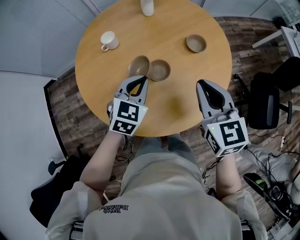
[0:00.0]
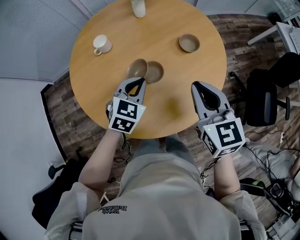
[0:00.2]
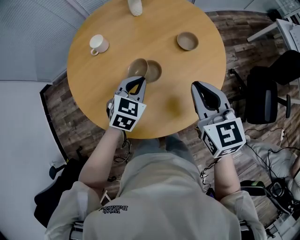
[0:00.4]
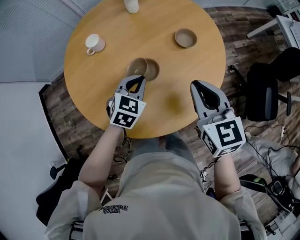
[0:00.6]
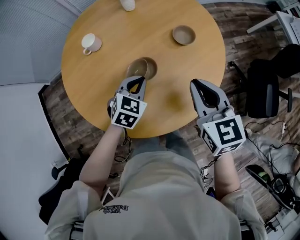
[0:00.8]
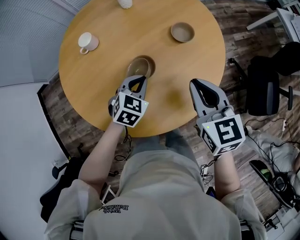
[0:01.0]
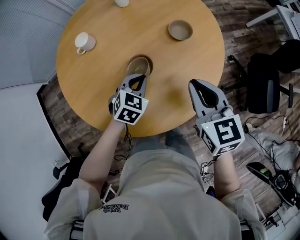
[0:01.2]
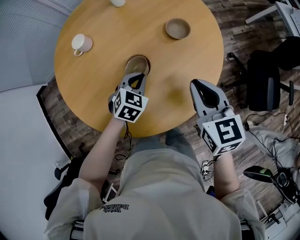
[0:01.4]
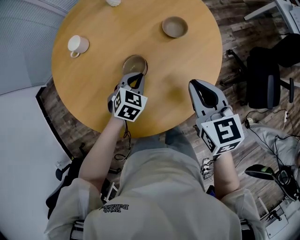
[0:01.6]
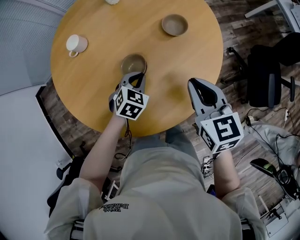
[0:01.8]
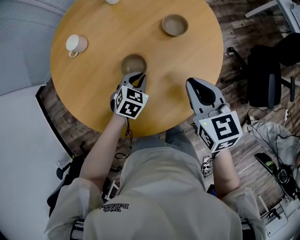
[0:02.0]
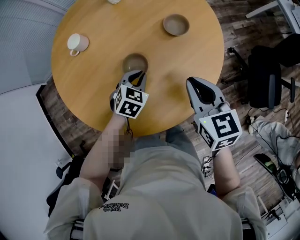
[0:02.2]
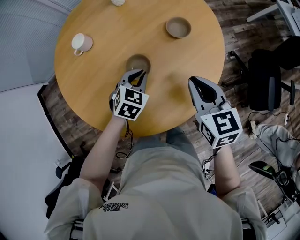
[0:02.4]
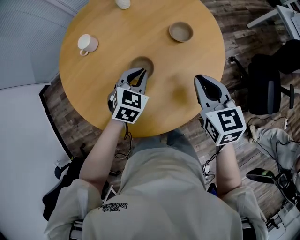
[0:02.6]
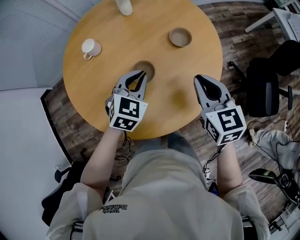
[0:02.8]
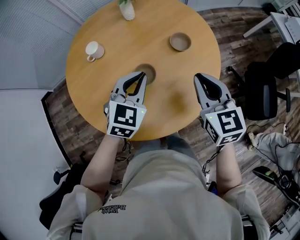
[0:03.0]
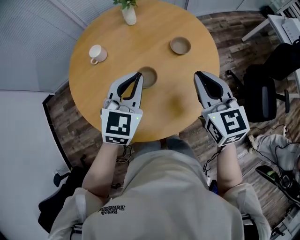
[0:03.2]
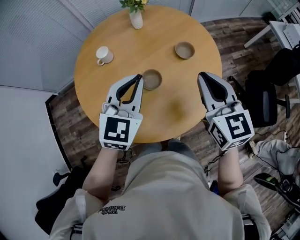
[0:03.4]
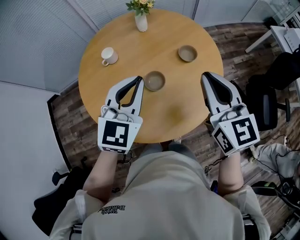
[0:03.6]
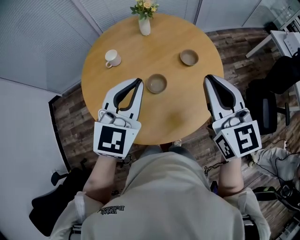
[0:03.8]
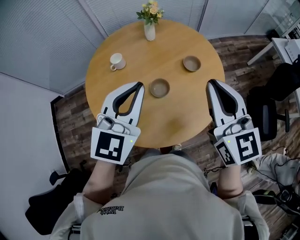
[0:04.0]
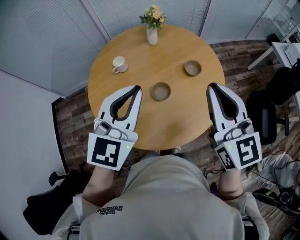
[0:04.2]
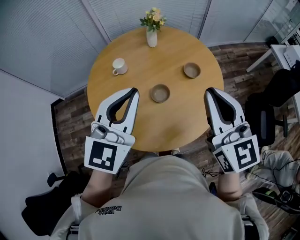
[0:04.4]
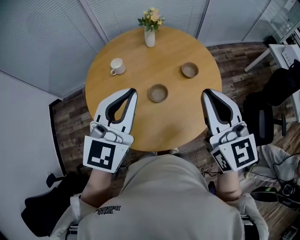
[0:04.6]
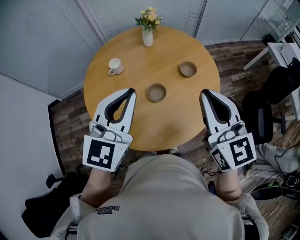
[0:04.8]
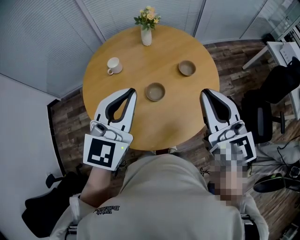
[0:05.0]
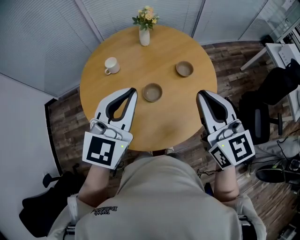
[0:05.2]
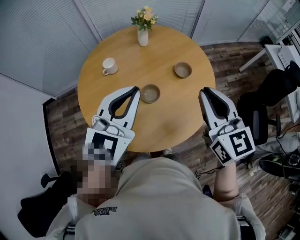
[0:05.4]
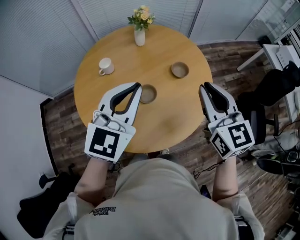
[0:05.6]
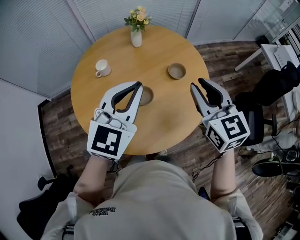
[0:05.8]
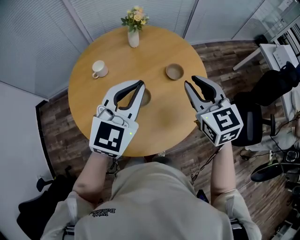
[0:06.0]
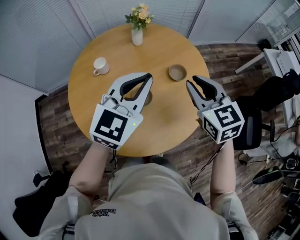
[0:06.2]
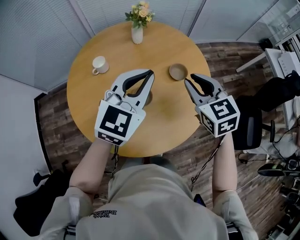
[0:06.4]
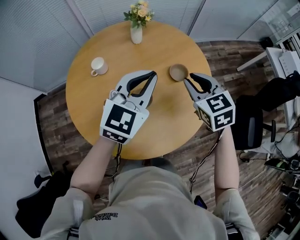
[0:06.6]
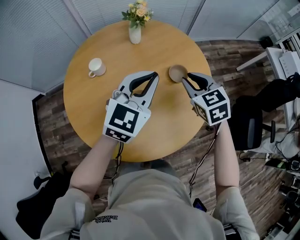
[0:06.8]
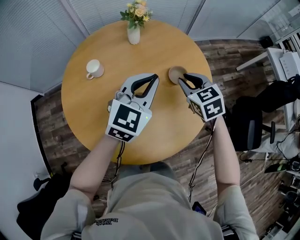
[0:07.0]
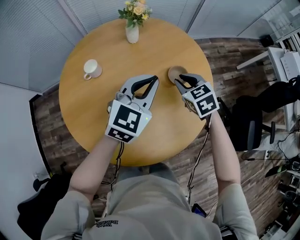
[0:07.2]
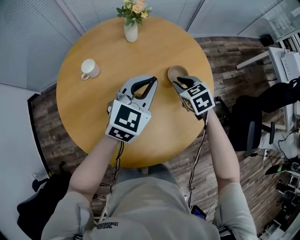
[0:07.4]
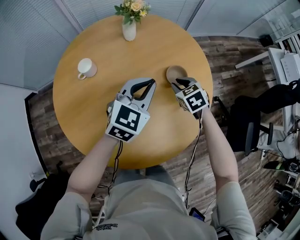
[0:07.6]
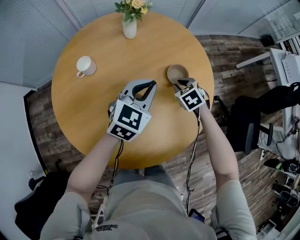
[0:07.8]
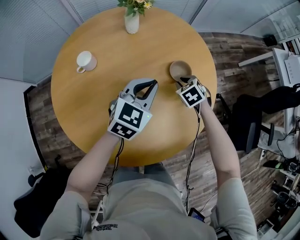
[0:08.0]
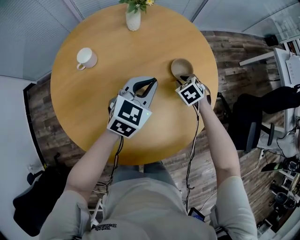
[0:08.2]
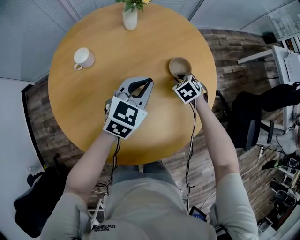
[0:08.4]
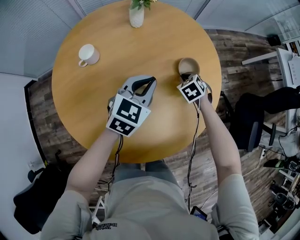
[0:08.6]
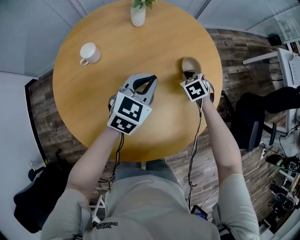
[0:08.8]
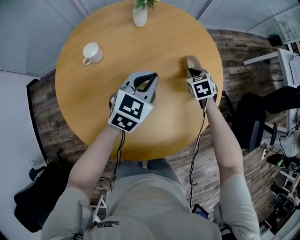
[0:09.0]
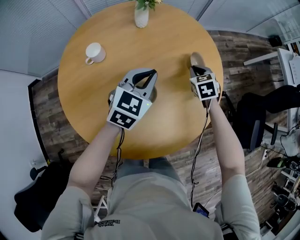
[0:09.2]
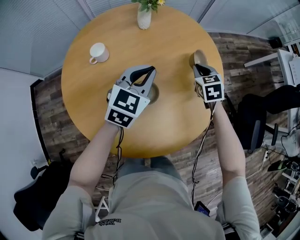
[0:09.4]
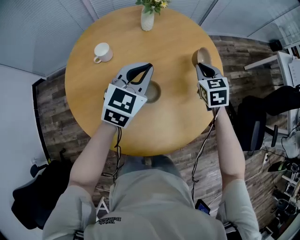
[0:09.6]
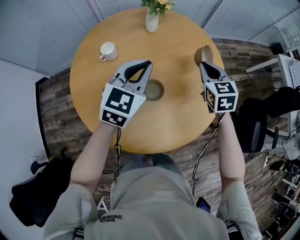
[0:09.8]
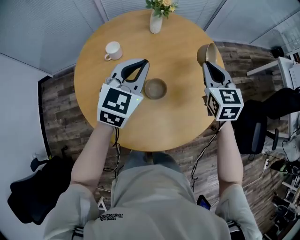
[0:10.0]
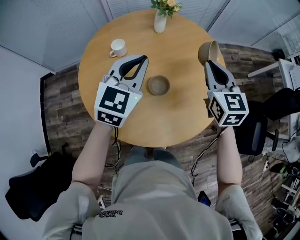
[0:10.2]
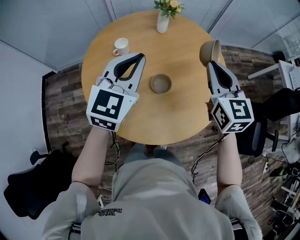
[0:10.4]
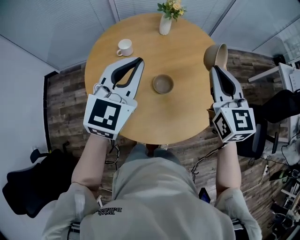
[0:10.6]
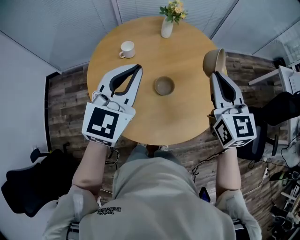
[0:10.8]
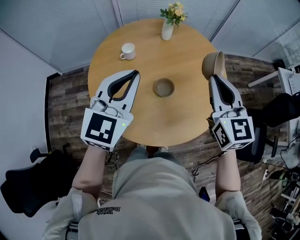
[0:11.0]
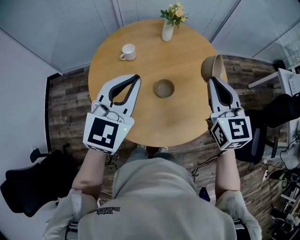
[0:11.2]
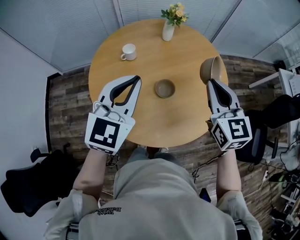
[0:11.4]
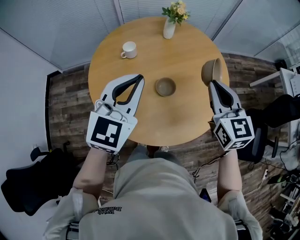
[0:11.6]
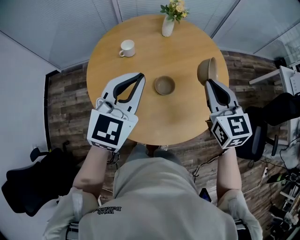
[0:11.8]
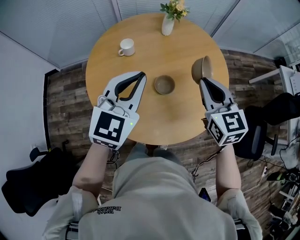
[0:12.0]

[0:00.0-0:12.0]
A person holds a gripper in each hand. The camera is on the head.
0.0 to 1.6 s: The left gripper travels downward by roughly 15 cm. Meanwhile the right gripper shifts about 10 cm downward and to the right.
1.6 to 3.0 s: The right gripper heads upward, covering some 5 cm; the left gripper shifts approximately 20 cm upward, and turns by roughly 20 degrees.
3.0 to 4.4 s: The left gripper shifts about 25 cm upward and backward, and swivels roughly 30 degrees. The right gripper moves upward, some 20 cm, and changes its angle by roughly 20 degrees.
4.4 to 6.0 s: The left gripper goes some 10 cm to the right and forward. The right gripper goes some 15 cm forward and downward.
6.0 to 7.6 s: The grippers both shift downward and forward by about 25 cm. The right gripper angles its fingers downward, by roughly 30 degrees.
7.6 to 9.0 s: The left gripper moves some 5 cm; the right gripper heads downward, covering approximately 5 cm.
9.0 to 10.4 s: The right gripper travels upward and backward by approximately 35 cm, and points its fingers roughly 40 degrees further upward. The left gripper is displaced upward, to the left and backward by approximately 25 cm, and swivels roughly 20 degrees.
10.4 to 12.0 s: The left gripper moves backward, approximately 5 cm, while the right gripper moves approximately 5 cm.

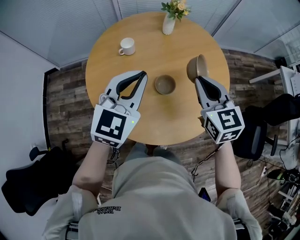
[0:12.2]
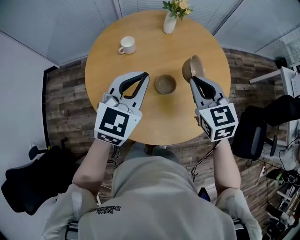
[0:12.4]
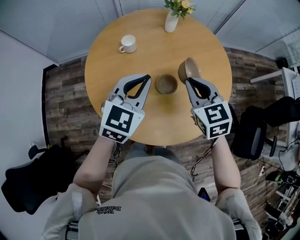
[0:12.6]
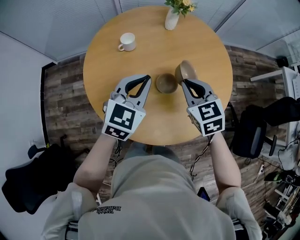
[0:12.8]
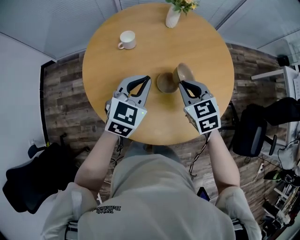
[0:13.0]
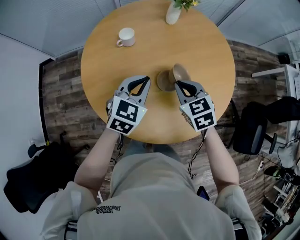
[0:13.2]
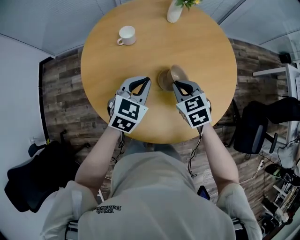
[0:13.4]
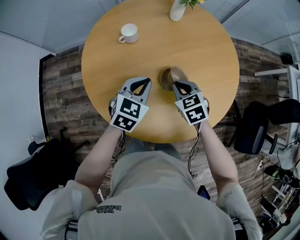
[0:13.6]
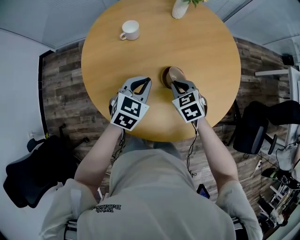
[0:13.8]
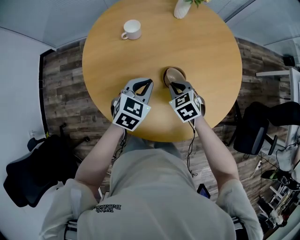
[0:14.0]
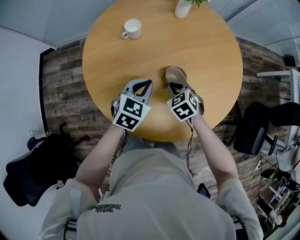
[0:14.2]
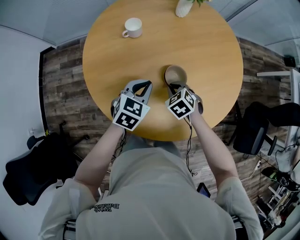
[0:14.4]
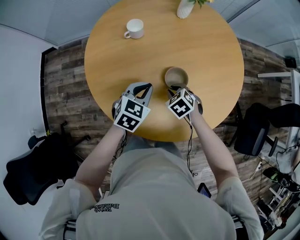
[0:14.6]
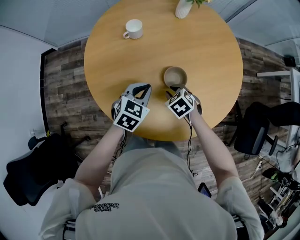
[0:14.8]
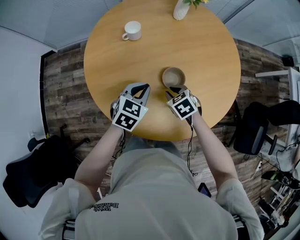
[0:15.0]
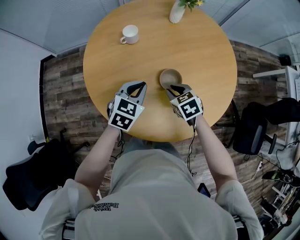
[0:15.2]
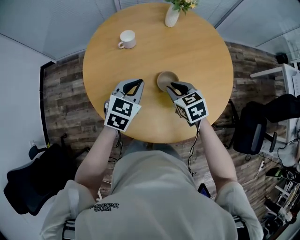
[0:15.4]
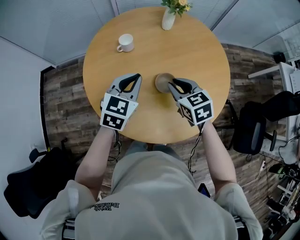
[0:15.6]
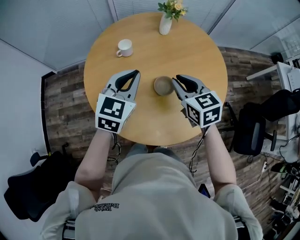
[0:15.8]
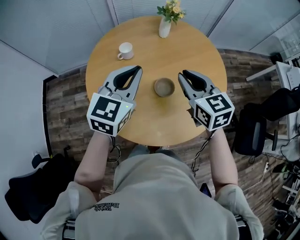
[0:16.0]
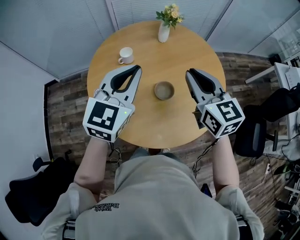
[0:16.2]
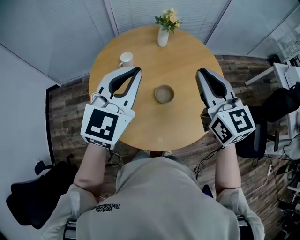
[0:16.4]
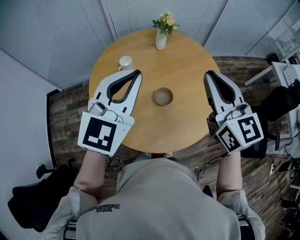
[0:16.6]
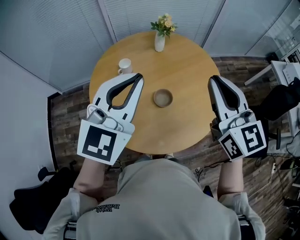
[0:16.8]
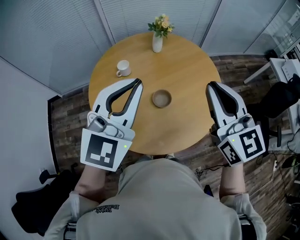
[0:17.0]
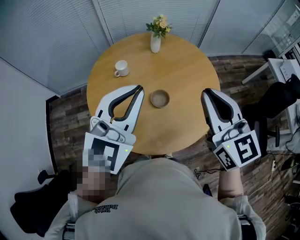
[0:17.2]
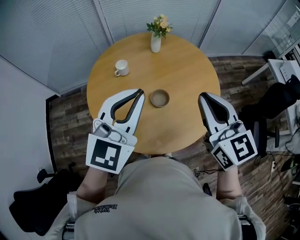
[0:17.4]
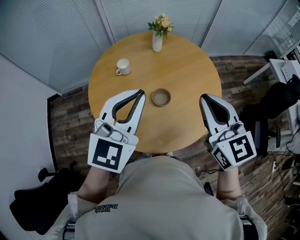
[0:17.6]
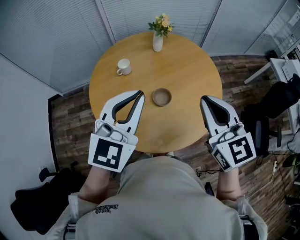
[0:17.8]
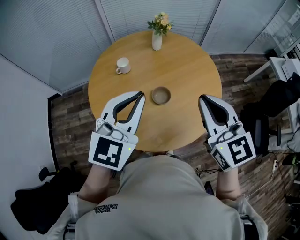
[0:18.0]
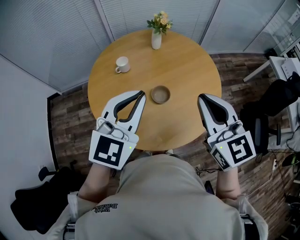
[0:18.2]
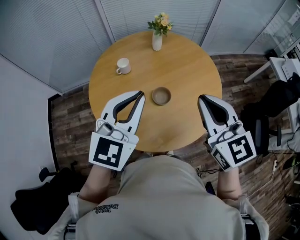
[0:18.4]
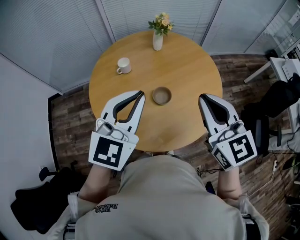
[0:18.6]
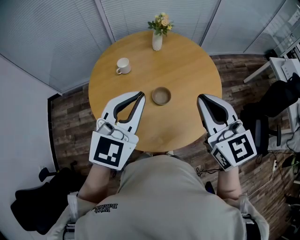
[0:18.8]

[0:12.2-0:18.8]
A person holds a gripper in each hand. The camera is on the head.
12.2 to 13.8 s: The grippers both shift downward by some 25 cm. The right gripper angles its fingers downward, by roughly 30 degrees. Meanwhile the left gripper rotates roughly 30 degrees.
13.8 to 15.4 s: The right gripper shifts approximately 5 cm upward.
15.4 to 17.2 s: The two grippers go about 30 cm upward. The right gripper angles its fingers upward, by some 40 degrees; the left gripper changes its angle by about 40 degrees.
17.2 to 18.8 s: The grippers make only small movements.

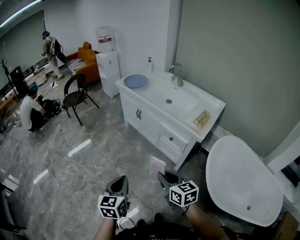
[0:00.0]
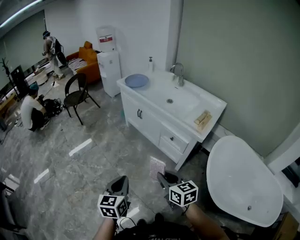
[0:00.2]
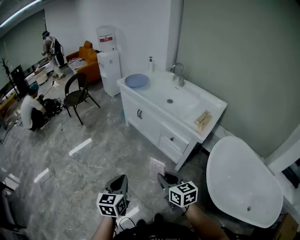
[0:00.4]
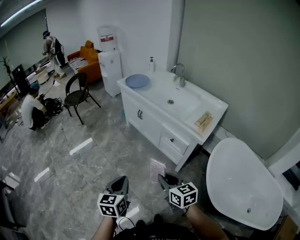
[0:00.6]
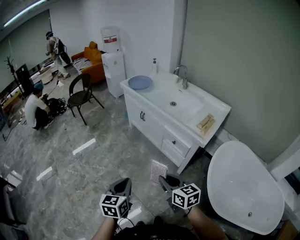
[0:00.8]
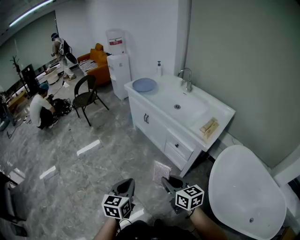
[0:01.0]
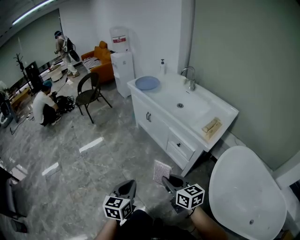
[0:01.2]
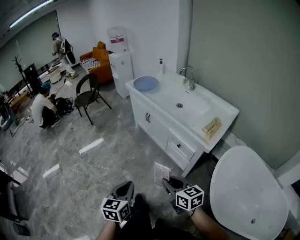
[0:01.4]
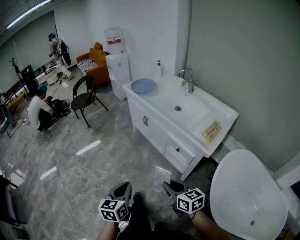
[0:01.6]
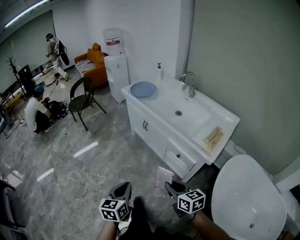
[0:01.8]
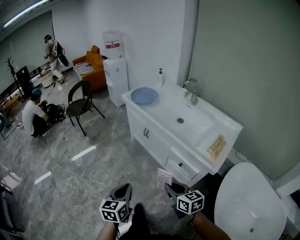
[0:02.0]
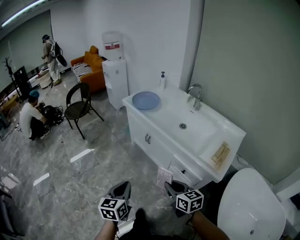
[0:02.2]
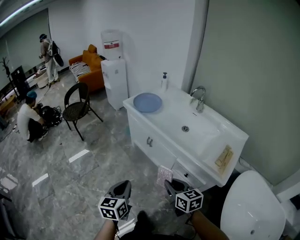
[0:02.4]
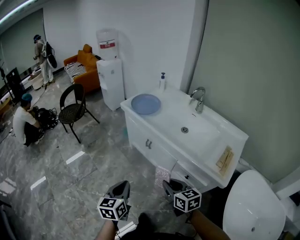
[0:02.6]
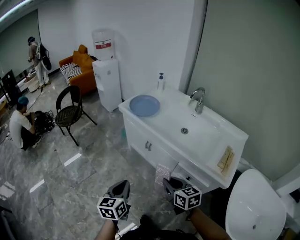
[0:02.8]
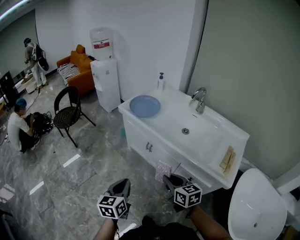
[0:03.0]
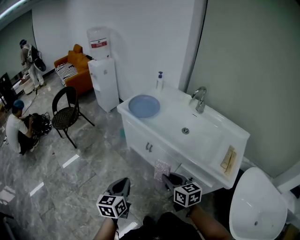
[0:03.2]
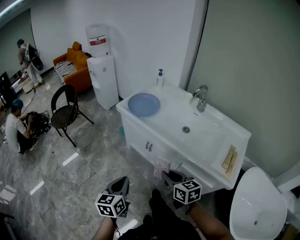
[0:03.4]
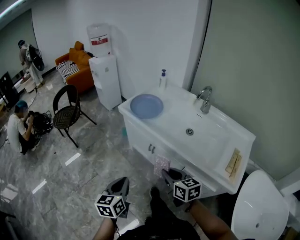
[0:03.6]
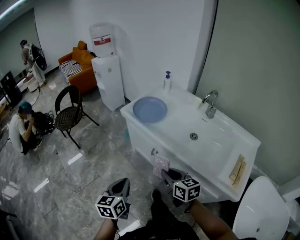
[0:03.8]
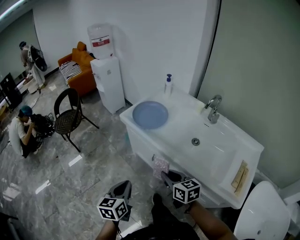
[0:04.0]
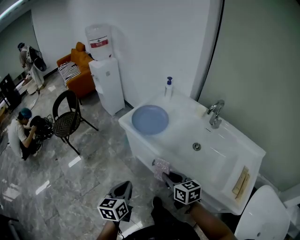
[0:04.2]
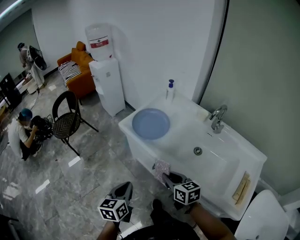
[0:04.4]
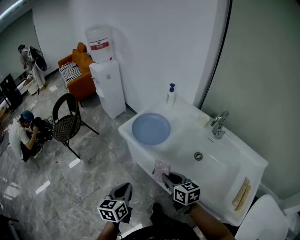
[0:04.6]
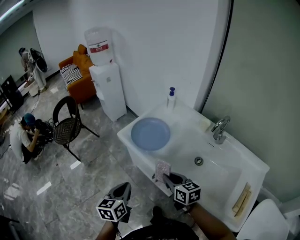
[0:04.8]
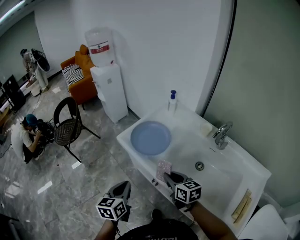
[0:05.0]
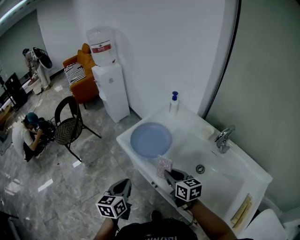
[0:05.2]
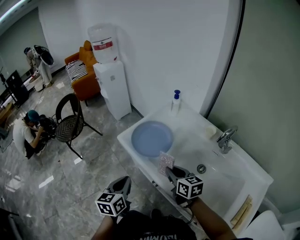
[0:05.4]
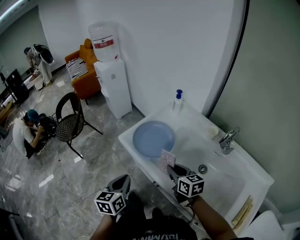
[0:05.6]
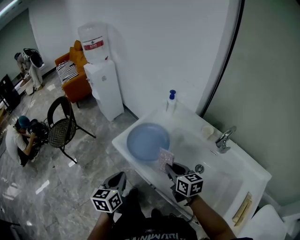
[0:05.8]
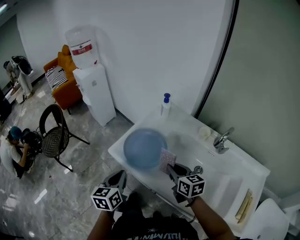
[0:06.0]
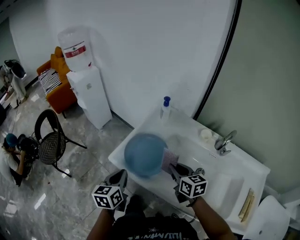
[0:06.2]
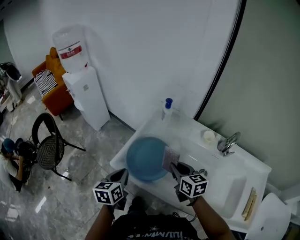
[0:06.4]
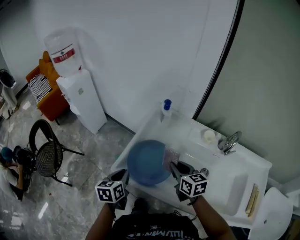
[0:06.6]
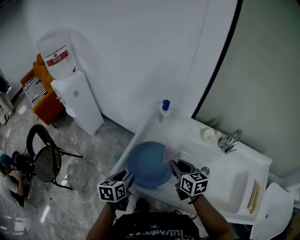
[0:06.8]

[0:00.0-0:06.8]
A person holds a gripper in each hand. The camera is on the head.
0.0 to 1.4 s: The right gripper shifts by about 5 cm, while the left gripper travels to the right by approximately 5 cm.
1.4 to 2.8 s: The two grippers go roughly 35 cm forward.
2.8 to 4.0 s: Both grippers travel together forward, approximately 20 cm.
4.0 to 5.4 s: Both grippers move forward, approximately 20 cm.
5.4 to 6.8 s: The right gripper changes place by some 15 cm, and rotates some 20 degrees; the left gripper moves approximately 25 cm, turns by about 30 degrees, and opens up.
